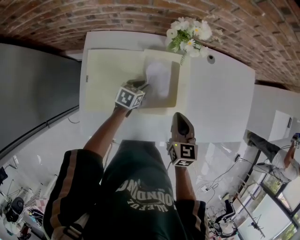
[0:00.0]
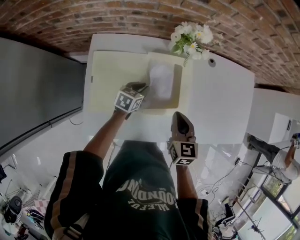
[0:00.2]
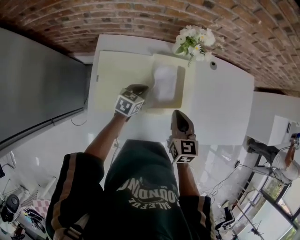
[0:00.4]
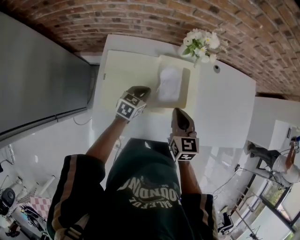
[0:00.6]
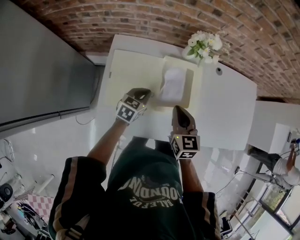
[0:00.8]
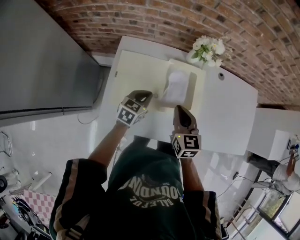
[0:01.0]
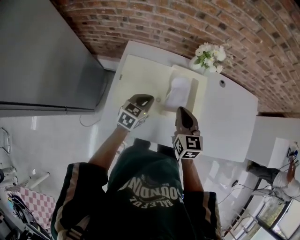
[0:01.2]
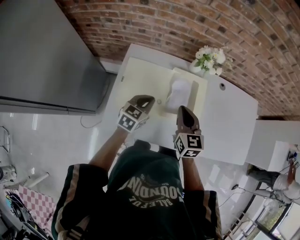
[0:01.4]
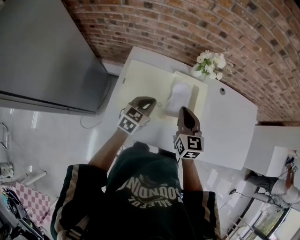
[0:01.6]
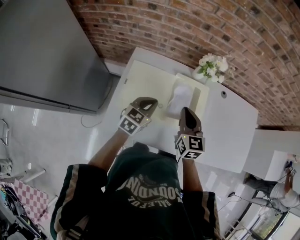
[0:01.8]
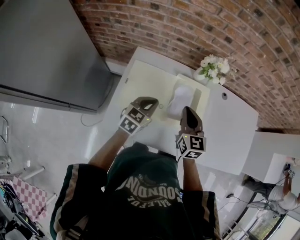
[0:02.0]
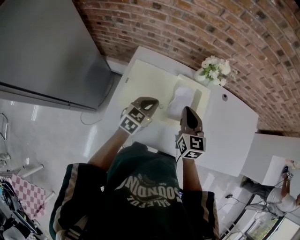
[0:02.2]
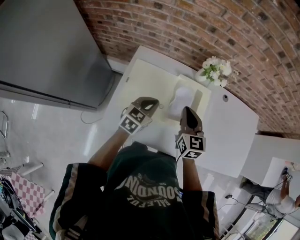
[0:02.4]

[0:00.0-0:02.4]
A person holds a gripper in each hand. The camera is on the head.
0:00.0 to 0:01.2: The left gripper is displaced upward, backward and to the left by about 20 cm, swivels approximately 20 degrees, and closes its fingers; the right gripper travels to the left and upward by approximately 10 cm.
0:01.2 to 0:02.4: The grippers stay close to where they were, moving slightly.

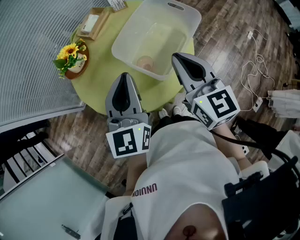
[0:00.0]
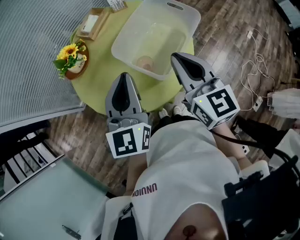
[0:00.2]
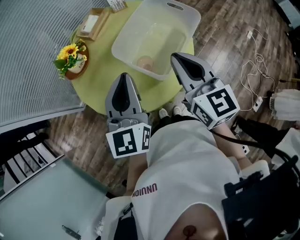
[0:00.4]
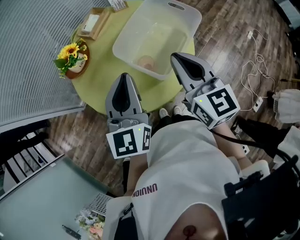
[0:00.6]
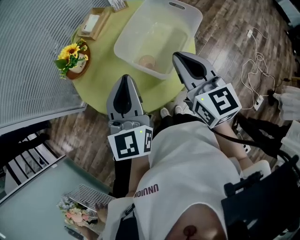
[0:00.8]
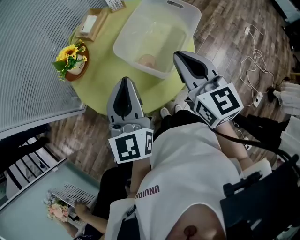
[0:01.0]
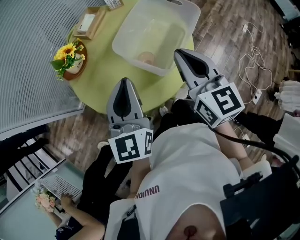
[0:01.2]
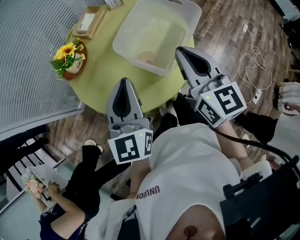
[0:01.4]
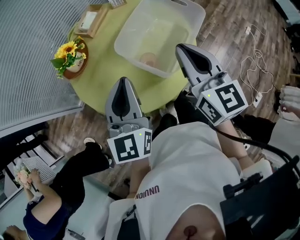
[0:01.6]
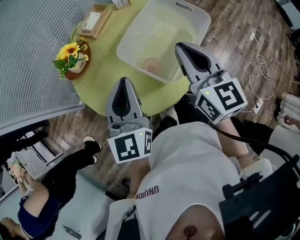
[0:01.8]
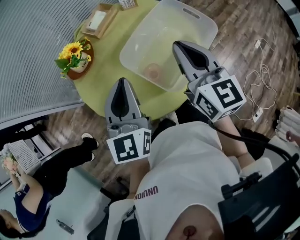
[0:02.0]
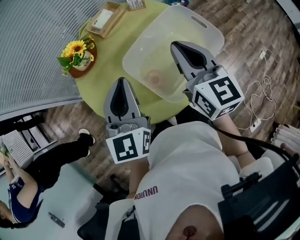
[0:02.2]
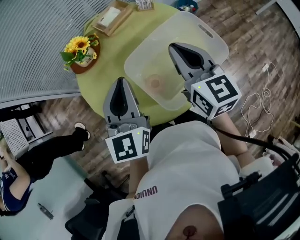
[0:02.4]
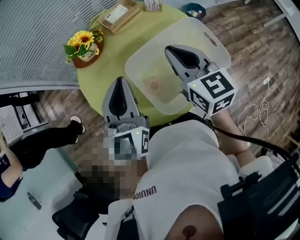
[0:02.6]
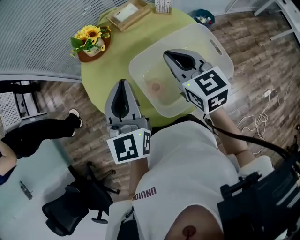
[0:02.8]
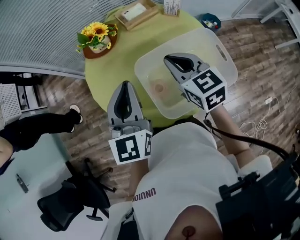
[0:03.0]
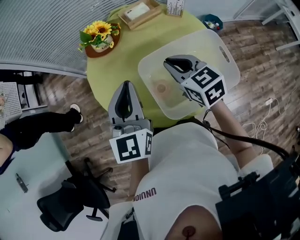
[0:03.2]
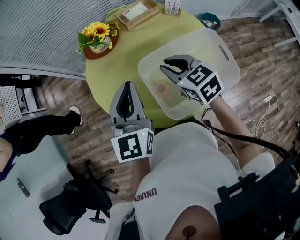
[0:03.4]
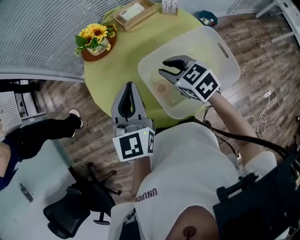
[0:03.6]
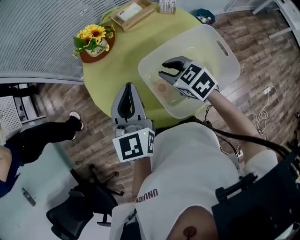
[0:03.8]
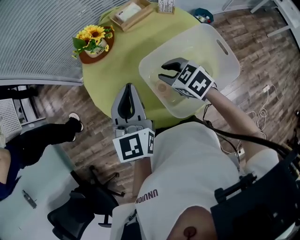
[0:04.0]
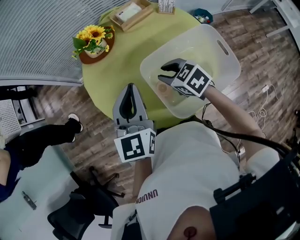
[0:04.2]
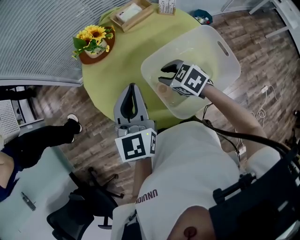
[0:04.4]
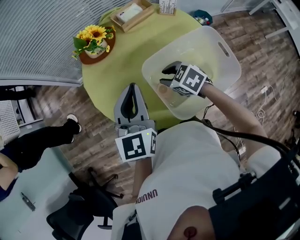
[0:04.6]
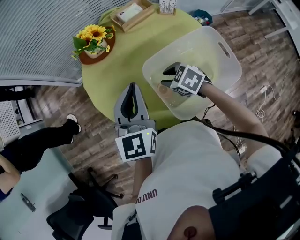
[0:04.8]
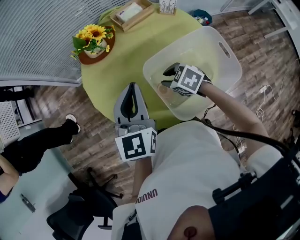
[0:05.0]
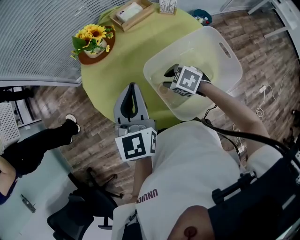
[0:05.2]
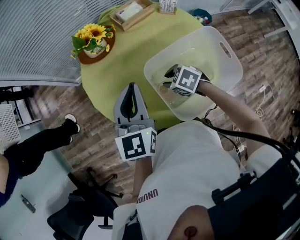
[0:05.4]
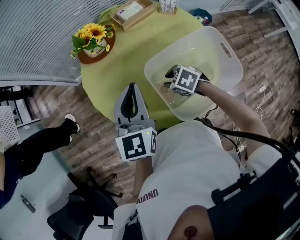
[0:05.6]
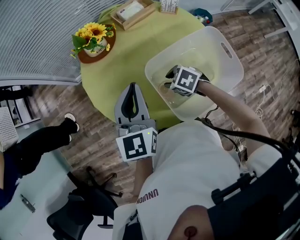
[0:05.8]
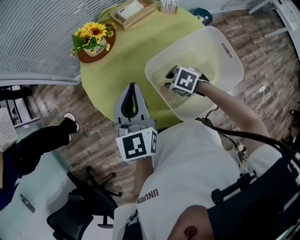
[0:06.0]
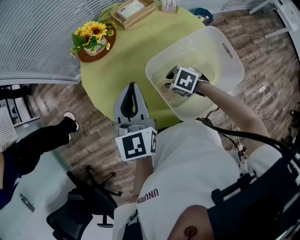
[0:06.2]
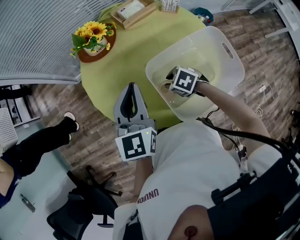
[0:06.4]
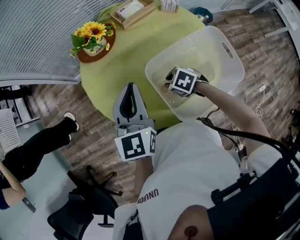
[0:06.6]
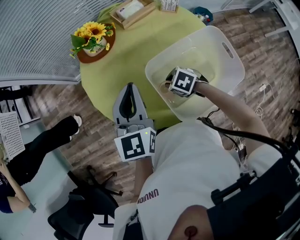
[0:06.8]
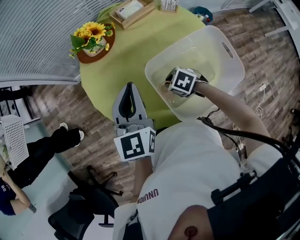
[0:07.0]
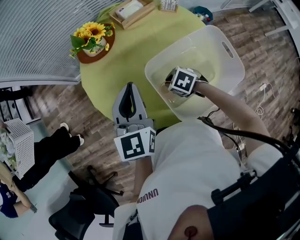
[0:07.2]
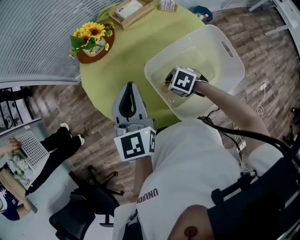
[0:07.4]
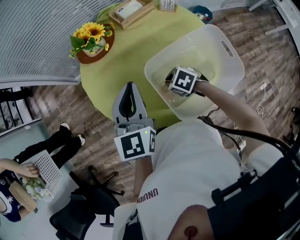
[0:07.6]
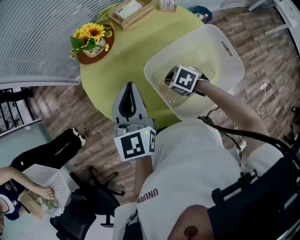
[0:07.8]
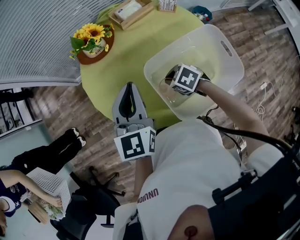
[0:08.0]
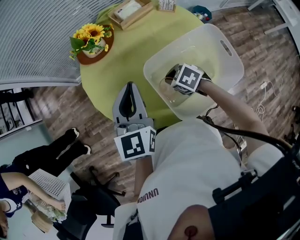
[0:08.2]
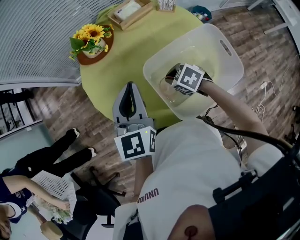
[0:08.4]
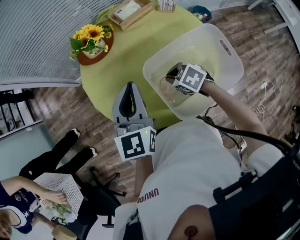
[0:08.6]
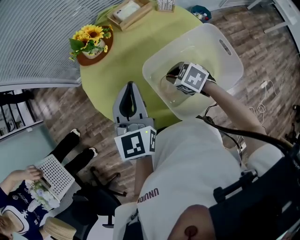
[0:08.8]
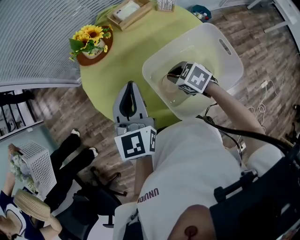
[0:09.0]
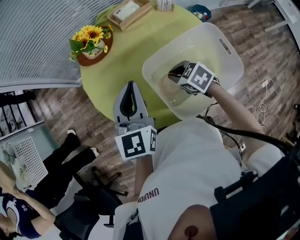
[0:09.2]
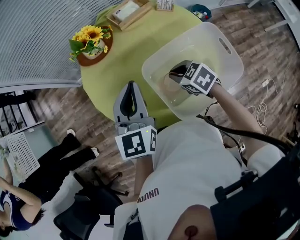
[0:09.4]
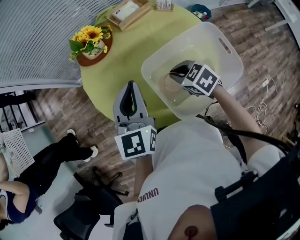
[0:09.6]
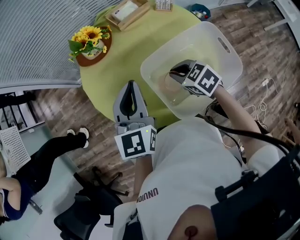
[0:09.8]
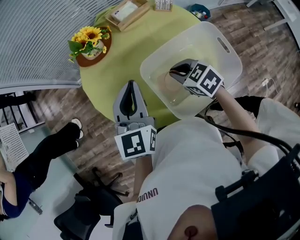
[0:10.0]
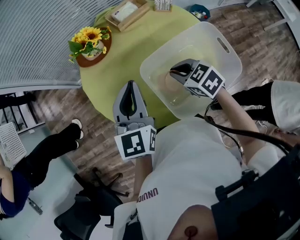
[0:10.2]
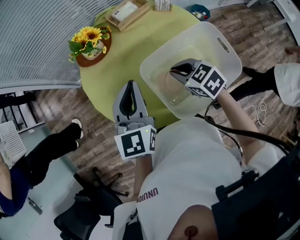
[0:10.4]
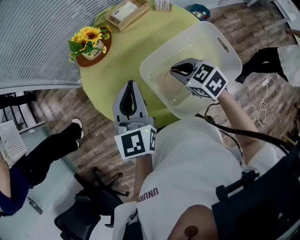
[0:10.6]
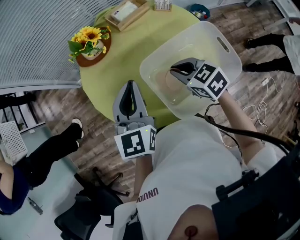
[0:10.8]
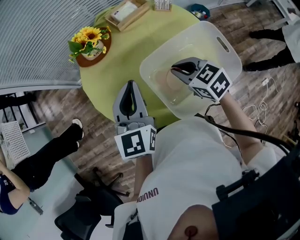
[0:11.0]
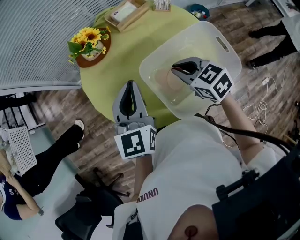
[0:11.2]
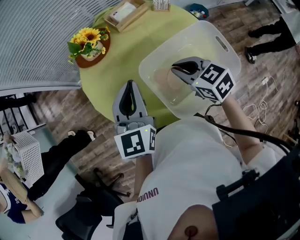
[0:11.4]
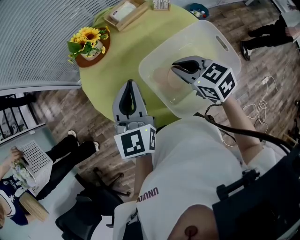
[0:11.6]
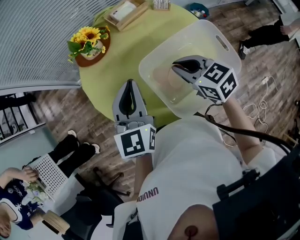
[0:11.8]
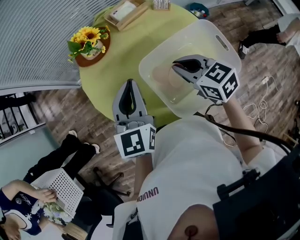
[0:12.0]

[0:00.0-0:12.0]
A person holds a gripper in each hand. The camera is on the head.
0:00.0 to 0:01.6: The grippers make only small movements.
0:01.6 to 0:03.0: The left gripper ends up about 5 cm from where it was, and rotates some 30 degrees, while the right gripper shifts by roughly 15 cm, and rotates about 50 degrees.
0:03.0 to 0:04.4: The right gripper moves downward and to the left, roughly 15 cm, swivels roughly 30 degrees, and opens its fingers.
0:04.4 to 0:06.0: The right gripper moves downward, roughly 10 cm.
0:06.0 to 0:07.6: The right gripper closes up.
0:07.6 to 0:09.0: The right gripper goes some 5 cm upward.
0:09.0 to 0:10.4: The right gripper heads upward, covering about 5 cm.
0:10.4 to 0:12.0: The right gripper shifts about 5 cm upward.

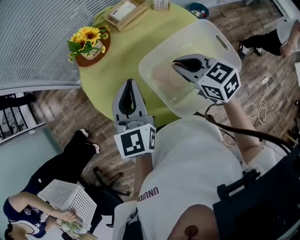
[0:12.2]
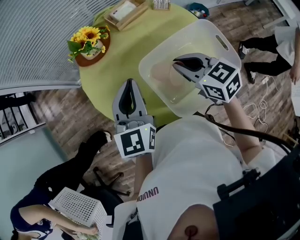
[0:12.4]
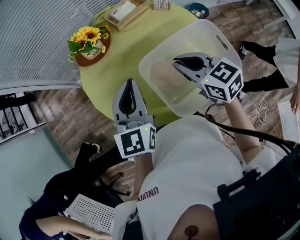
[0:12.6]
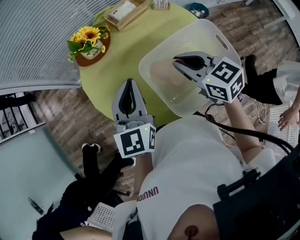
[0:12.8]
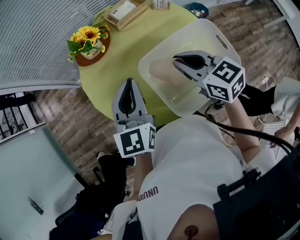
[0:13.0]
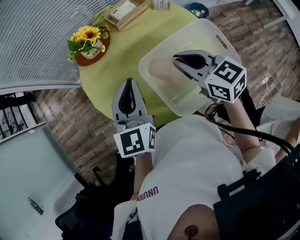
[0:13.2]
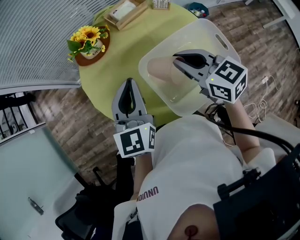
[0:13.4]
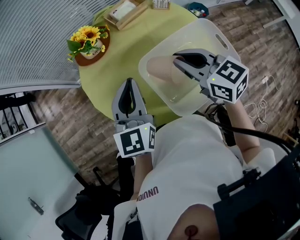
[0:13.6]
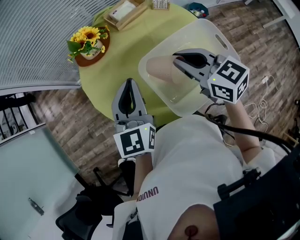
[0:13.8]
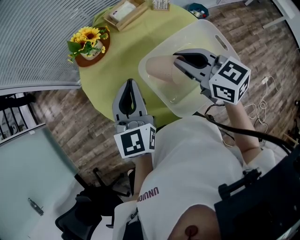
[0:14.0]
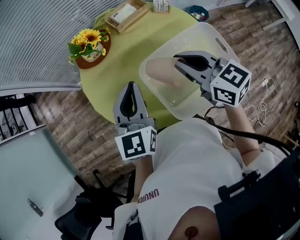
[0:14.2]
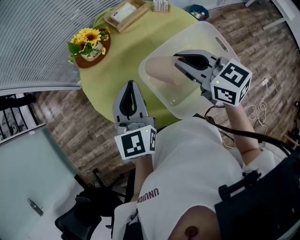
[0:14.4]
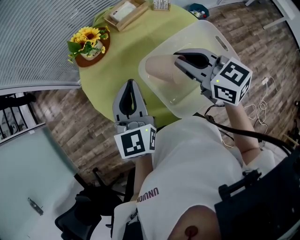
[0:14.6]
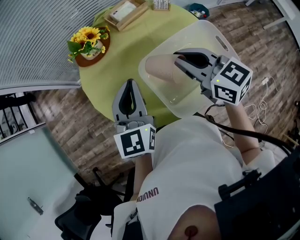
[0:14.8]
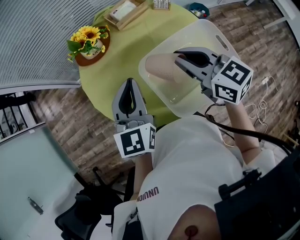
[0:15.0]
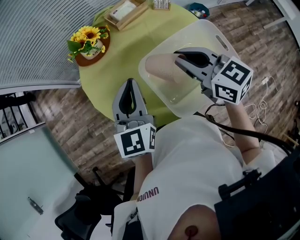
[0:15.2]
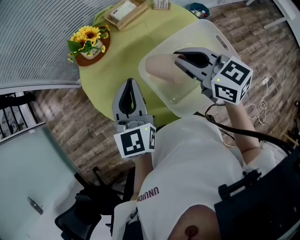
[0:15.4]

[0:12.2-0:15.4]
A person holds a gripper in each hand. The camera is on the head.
0:12.2 to 0:13.8: The right gripper is displaced upward by about 5 cm.
0:13.8 to 0:15.4: There are only small adjustments of the grippers.

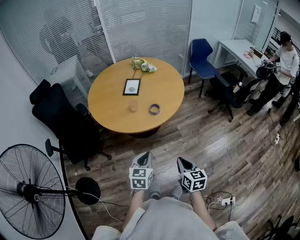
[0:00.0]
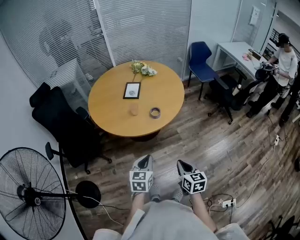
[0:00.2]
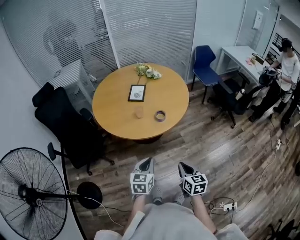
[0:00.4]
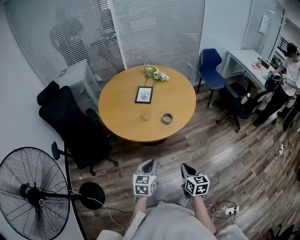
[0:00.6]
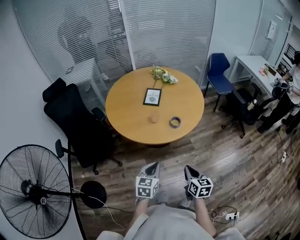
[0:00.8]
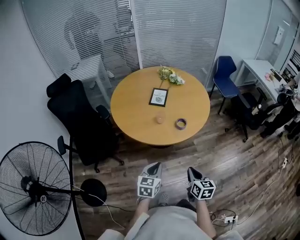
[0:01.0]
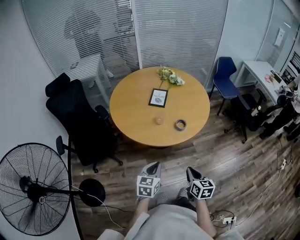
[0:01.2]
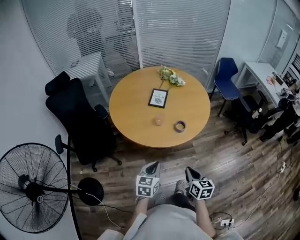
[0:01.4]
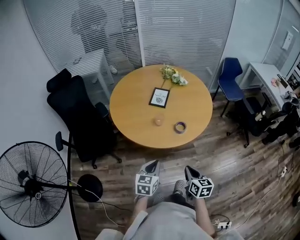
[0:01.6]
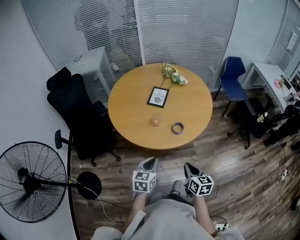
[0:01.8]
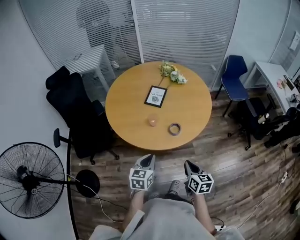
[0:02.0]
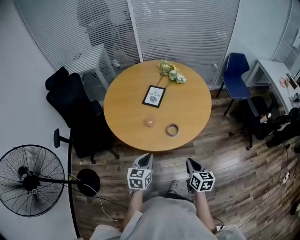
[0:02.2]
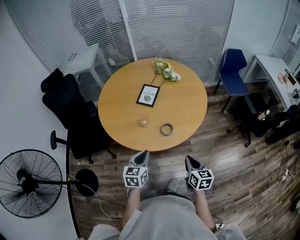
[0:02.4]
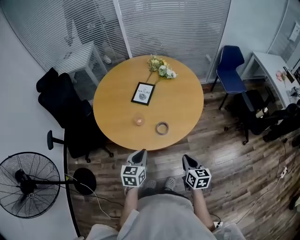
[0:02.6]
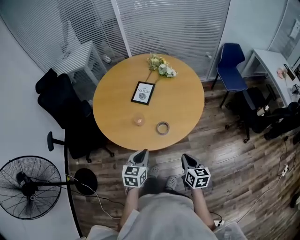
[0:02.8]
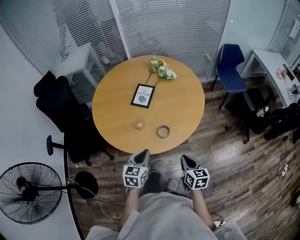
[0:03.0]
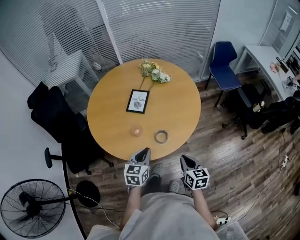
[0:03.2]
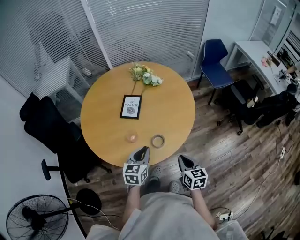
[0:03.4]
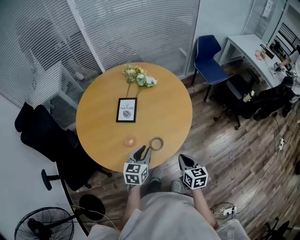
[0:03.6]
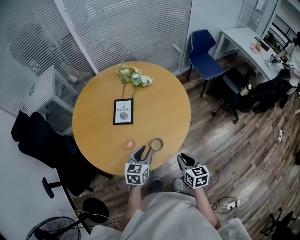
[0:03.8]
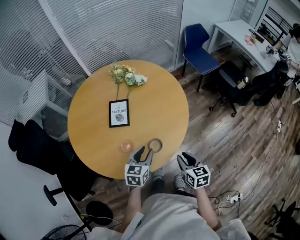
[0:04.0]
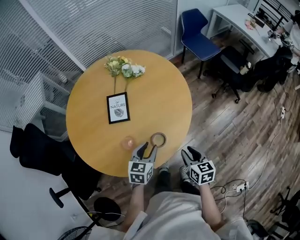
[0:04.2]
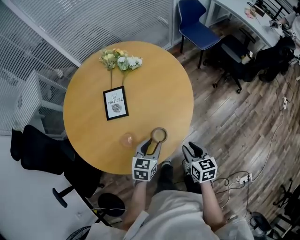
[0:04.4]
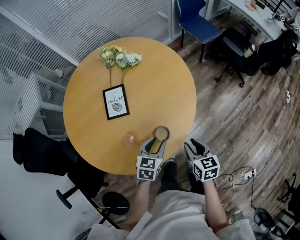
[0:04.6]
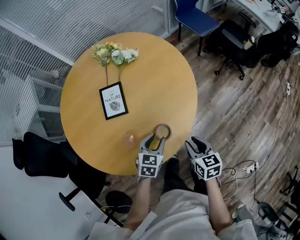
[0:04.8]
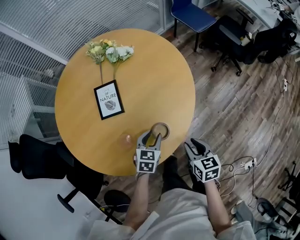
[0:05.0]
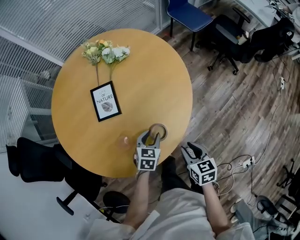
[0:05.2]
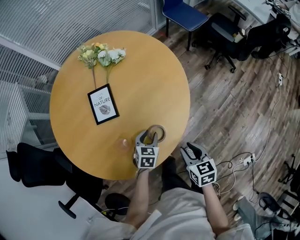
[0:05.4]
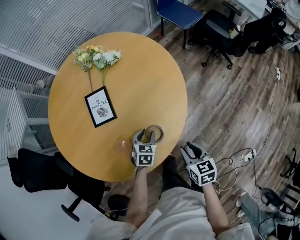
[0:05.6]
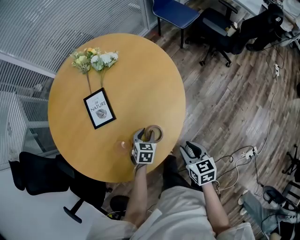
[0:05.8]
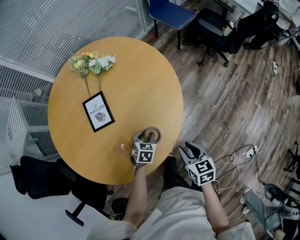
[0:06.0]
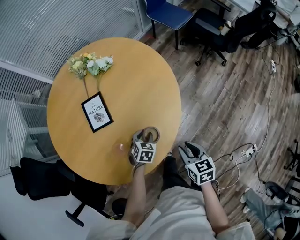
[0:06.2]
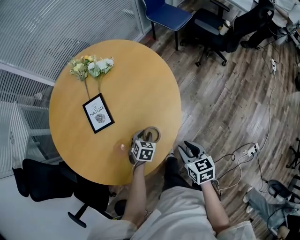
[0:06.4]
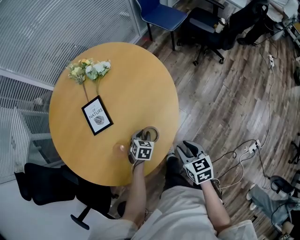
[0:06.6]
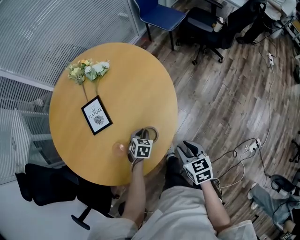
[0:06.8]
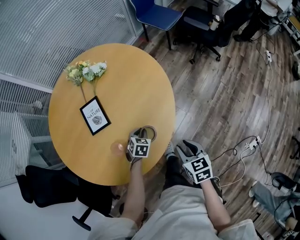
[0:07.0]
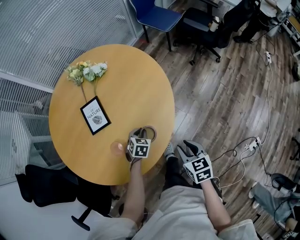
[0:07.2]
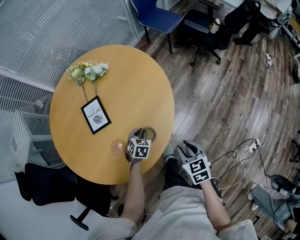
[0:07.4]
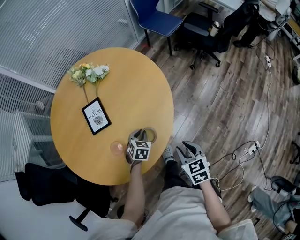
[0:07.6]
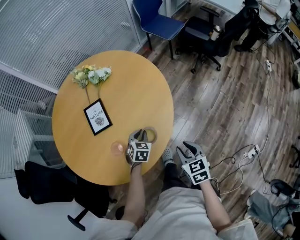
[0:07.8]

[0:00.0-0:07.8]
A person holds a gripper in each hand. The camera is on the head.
0:00.0 to 0:01.6: The two grippers go approximately 15 cm forward and to the left.
0:01.6 to 0:03.2: The two grippers go some 20 cm forward and to the right.
0:03.2 to 0:04.6: The left gripper heads downward and forward, covering some 15 cm, rotates approximately 30 degrees, and opens up. Meanwhile the right gripper moves forward and downward, roughly 10 cm, and opens up.
0:04.6 to 0:06.2: The left gripper is displaced downward by about 15 cm, and swivels about 20 degrees.
0:06.2 to 0:07.8: The left gripper moves upward, approximately 5 cm, and closes its fingers.
